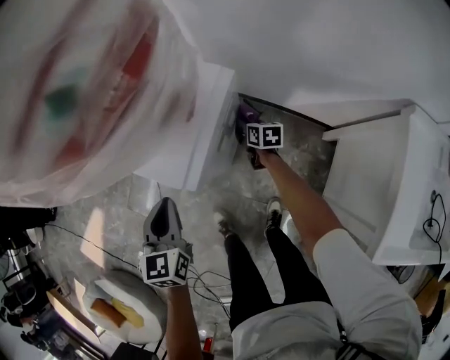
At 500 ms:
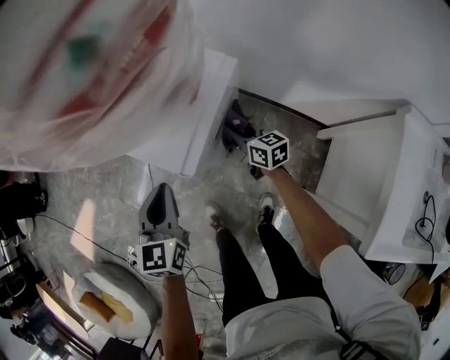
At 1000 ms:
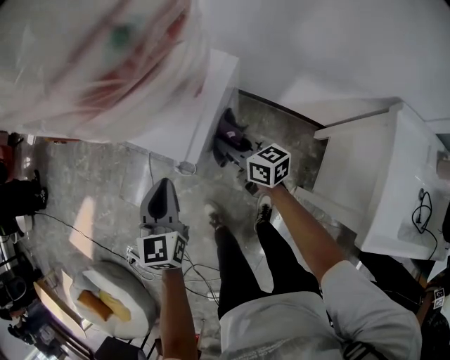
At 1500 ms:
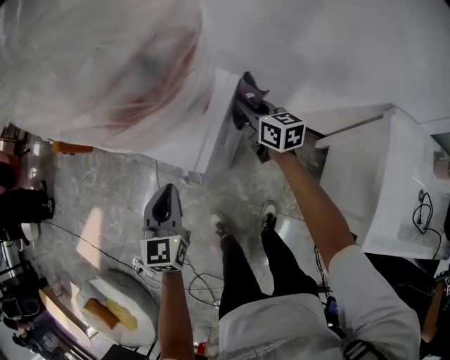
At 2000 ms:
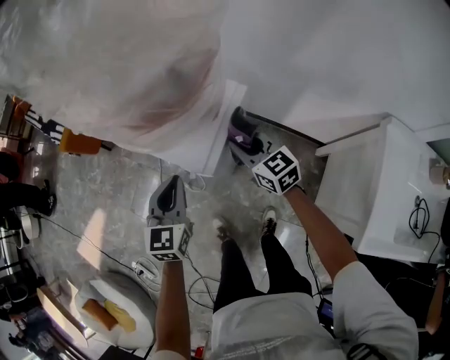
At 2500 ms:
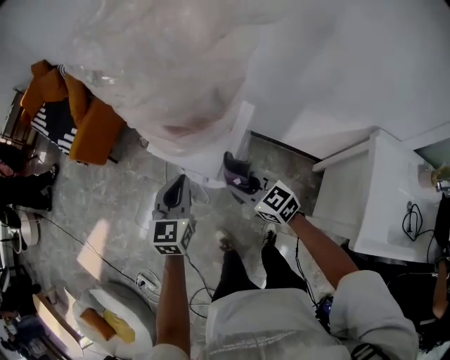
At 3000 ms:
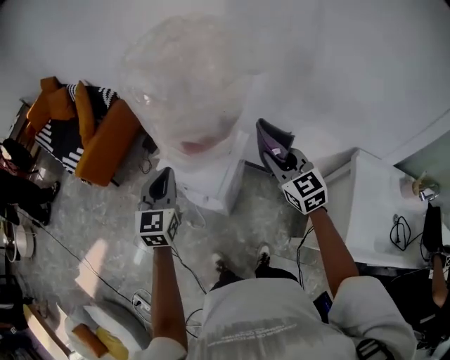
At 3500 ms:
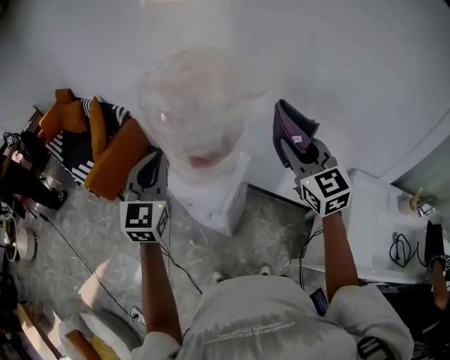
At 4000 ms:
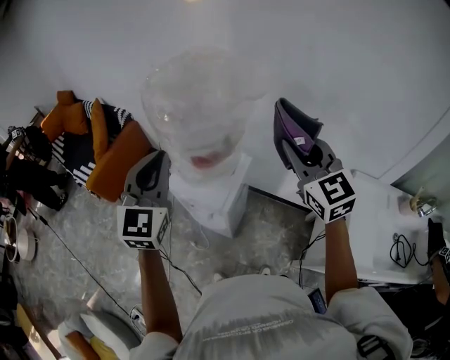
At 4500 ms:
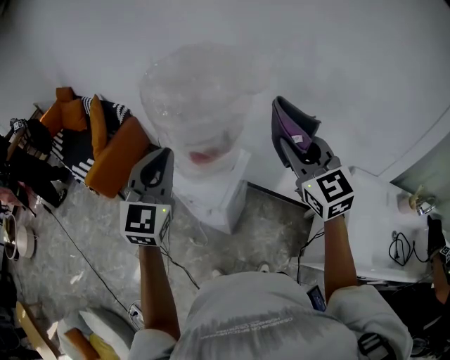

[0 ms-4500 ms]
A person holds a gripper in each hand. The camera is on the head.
0 ms to 2000 ms: The right gripper travels upward by some 30 cm, and changes its angle by about 40 degrees. The left gripper shifts some 10 cm upward.
2000 ms to 4500 ms: The grippers both shift upward by some 35 cm. The left gripper turns by some 30 degrees. Meanwhile the right gripper changes its angle by about 40 degrees.

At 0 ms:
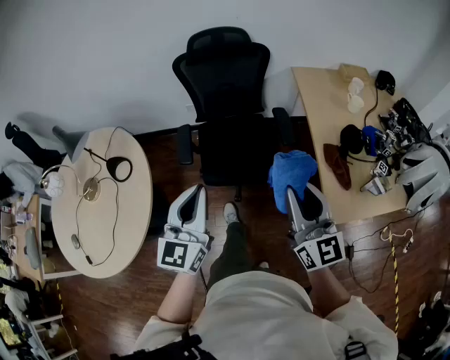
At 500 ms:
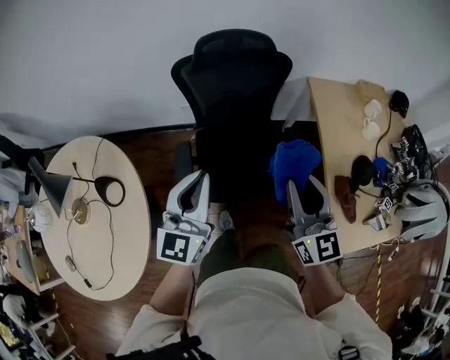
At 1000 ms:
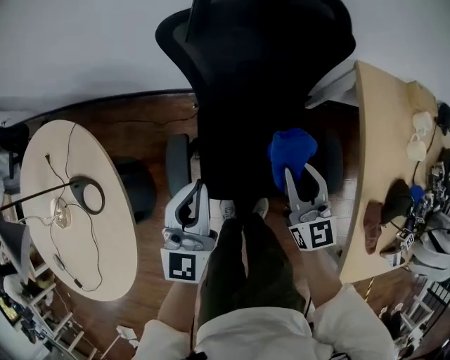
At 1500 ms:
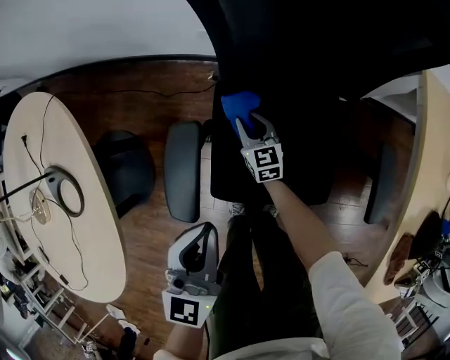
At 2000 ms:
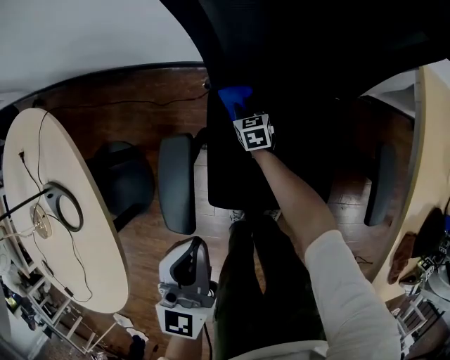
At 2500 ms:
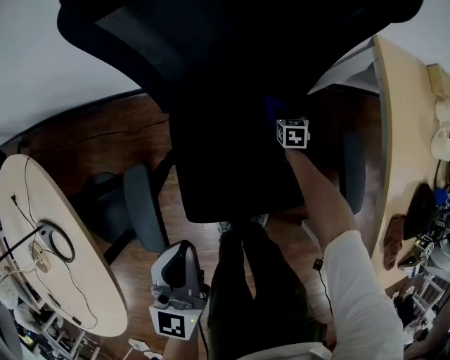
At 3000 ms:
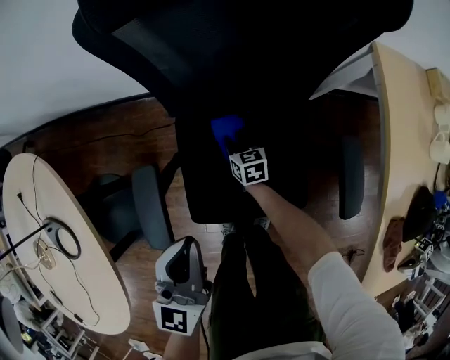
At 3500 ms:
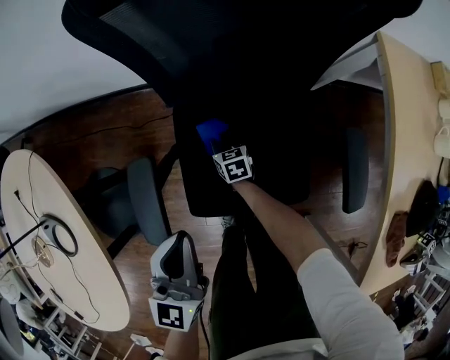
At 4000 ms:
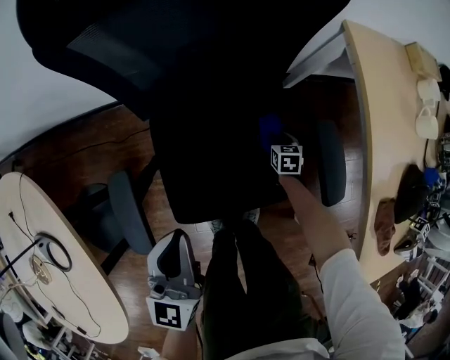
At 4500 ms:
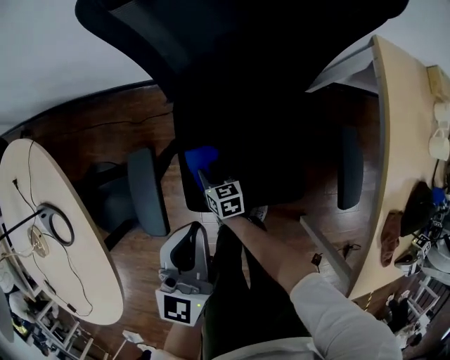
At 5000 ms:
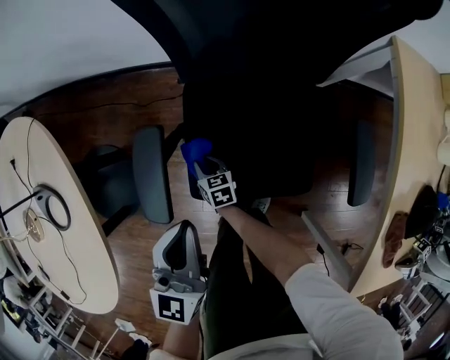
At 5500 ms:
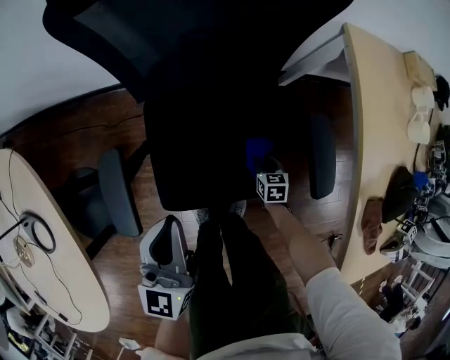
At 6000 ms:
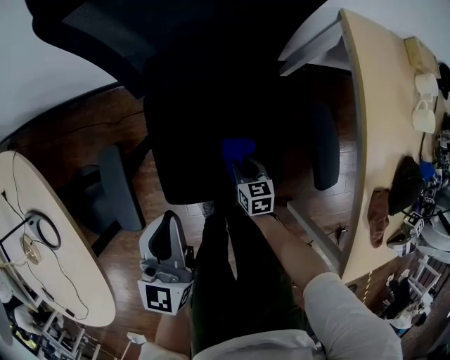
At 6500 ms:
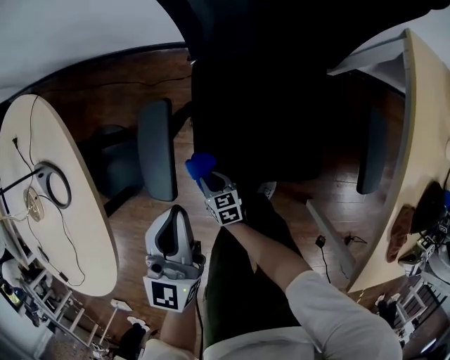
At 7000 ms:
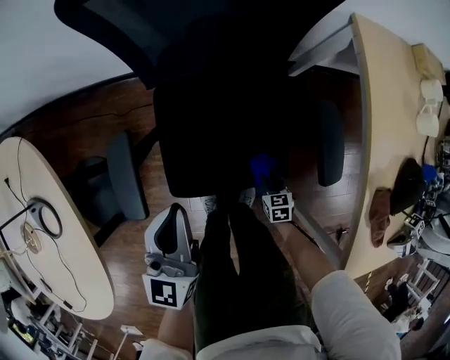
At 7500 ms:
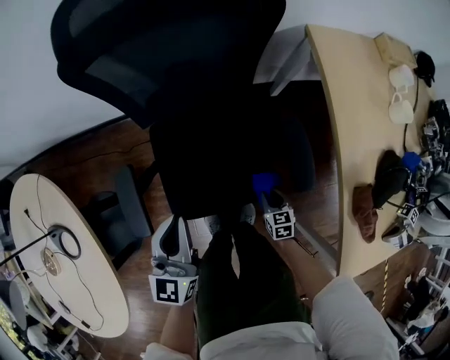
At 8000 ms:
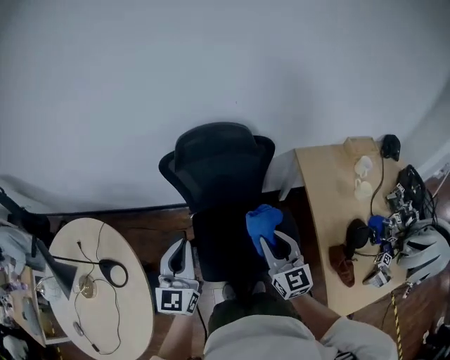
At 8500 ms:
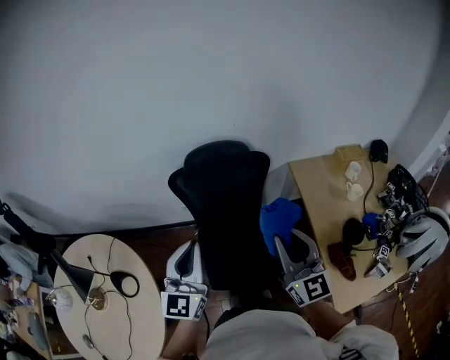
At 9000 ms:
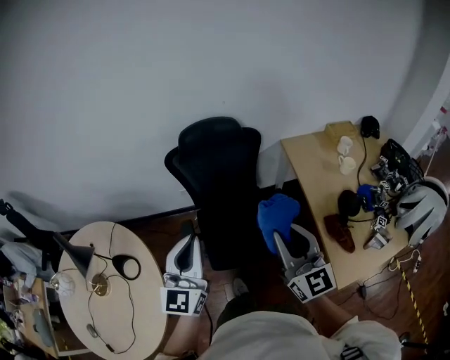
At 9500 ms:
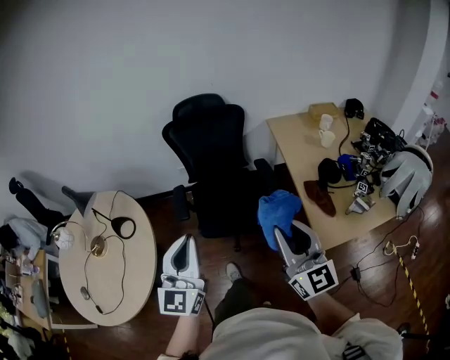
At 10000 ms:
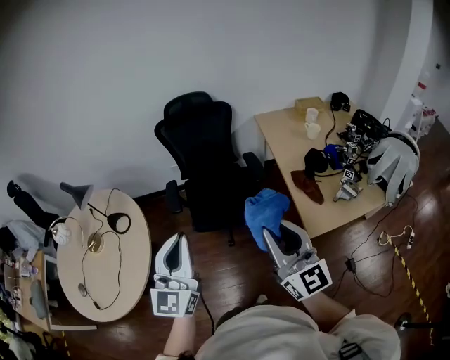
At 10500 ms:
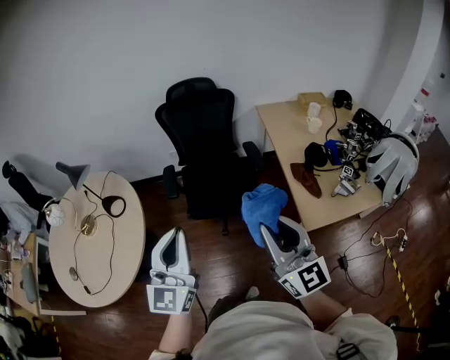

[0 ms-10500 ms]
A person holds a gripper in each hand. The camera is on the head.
0 ms to 2000 ms: The left gripper shifts some 60 cm downward and forward; the right gripper shifts some 1 m downward and forward, and points its fingers approximately 50 degrees further downward.
2000 ms to 4000 ms: The right gripper swings left and right, about 30 cm each way, with 2 reversals, and swivels some 30 degrees. Meanwhile the left gripper moves to the right, approximately 10 cm.
4000 ms to 6500 ms: The right gripper swings up and down, some 5 cm each way, with 3 reversals, and rotates about 30 degrees. The left gripper changes place by roughly 10 cm.
6500 ms to 8500 ms: The left gripper goes about 50 cm upward and backward, and swivels approximately 30 degrees. The right gripper travels upward by approximately 90 cm, and tips its fingers upward by about 60 degrees.
8500 ms to 10500 ms: The pair of grippers is taken backward, about 50 cm.

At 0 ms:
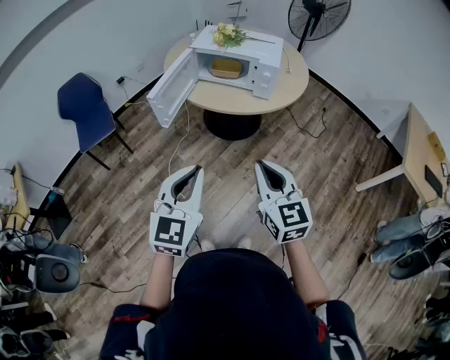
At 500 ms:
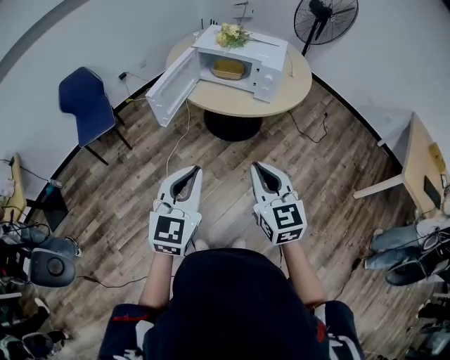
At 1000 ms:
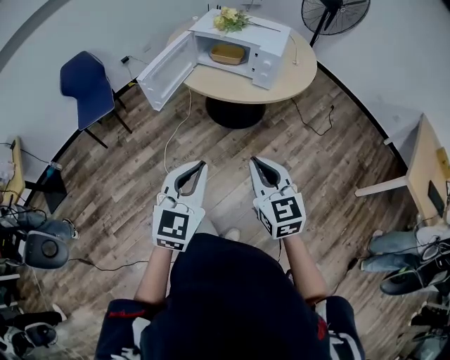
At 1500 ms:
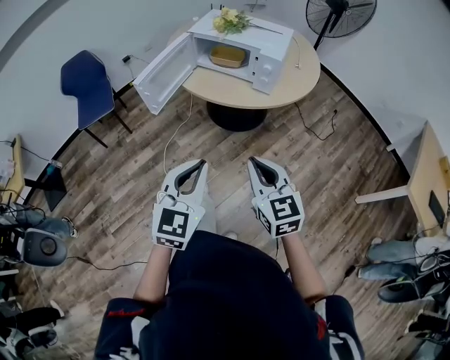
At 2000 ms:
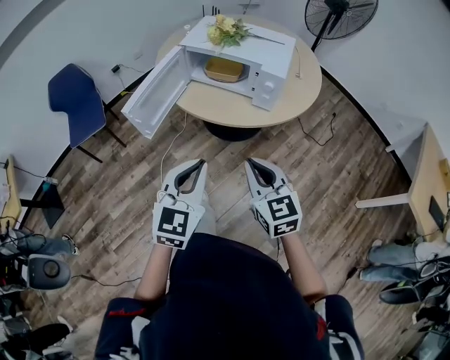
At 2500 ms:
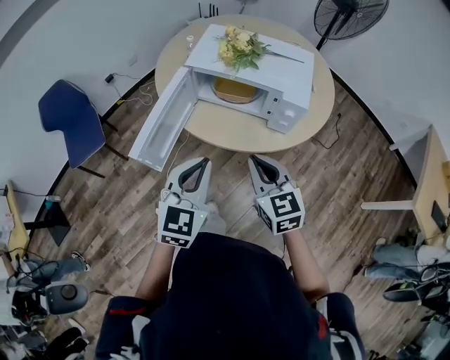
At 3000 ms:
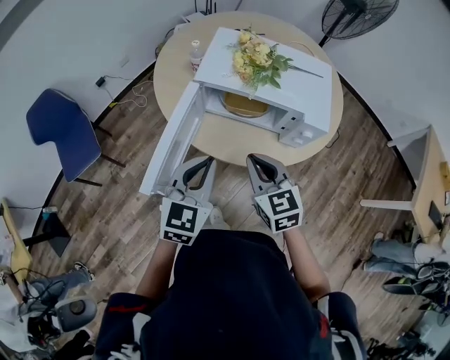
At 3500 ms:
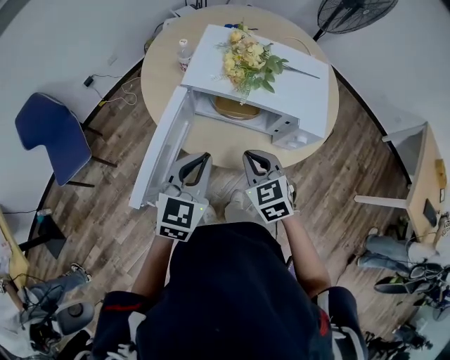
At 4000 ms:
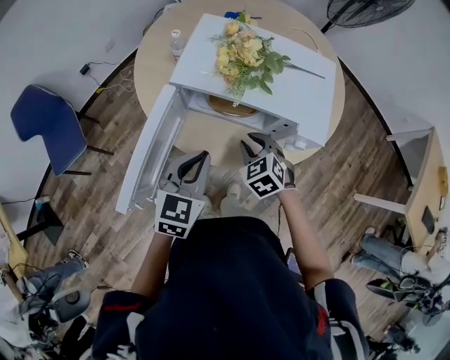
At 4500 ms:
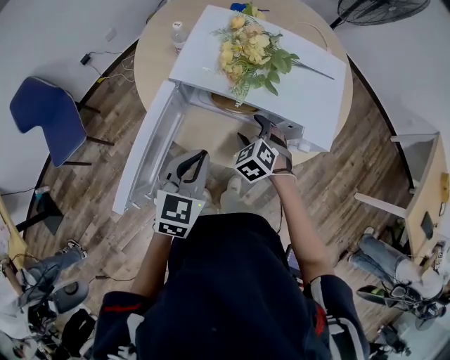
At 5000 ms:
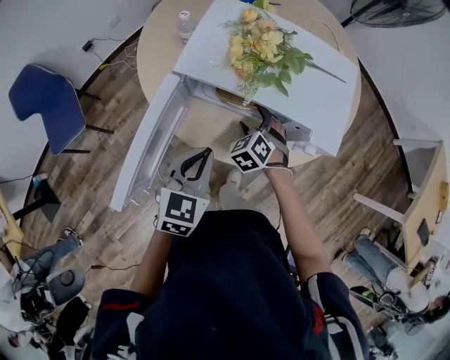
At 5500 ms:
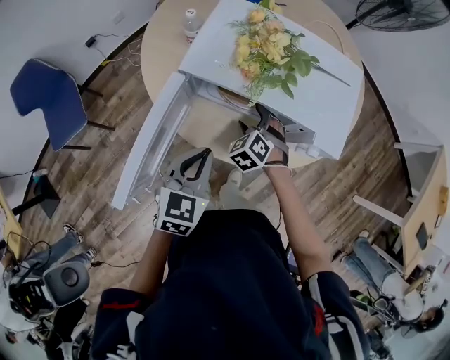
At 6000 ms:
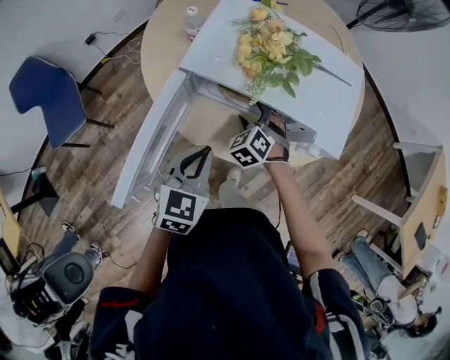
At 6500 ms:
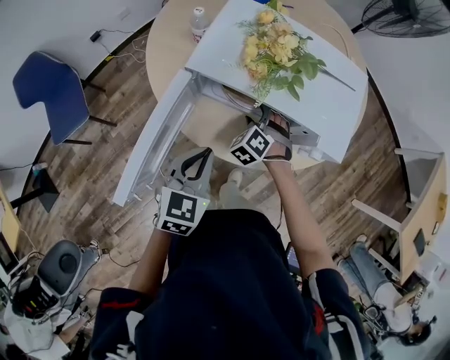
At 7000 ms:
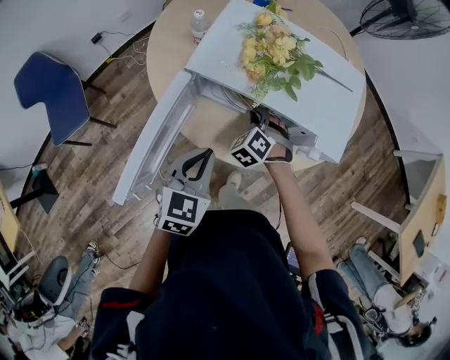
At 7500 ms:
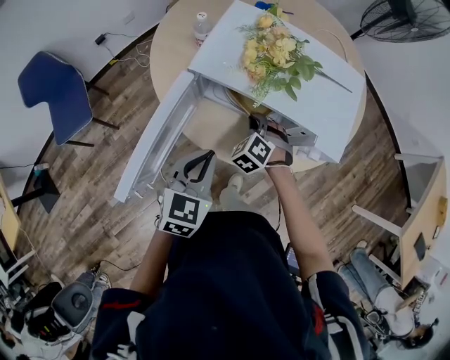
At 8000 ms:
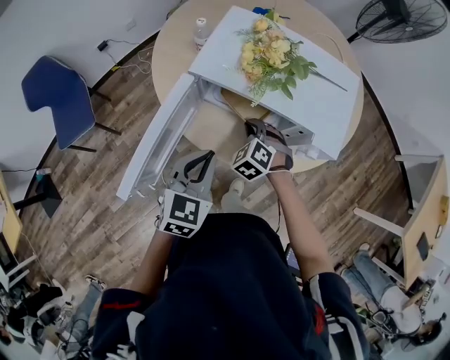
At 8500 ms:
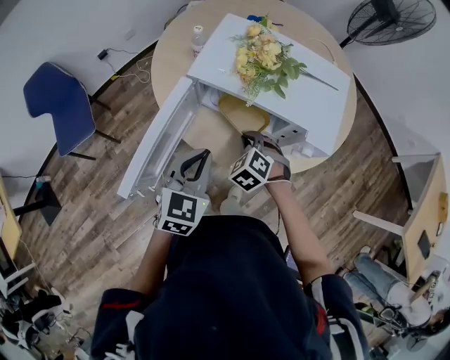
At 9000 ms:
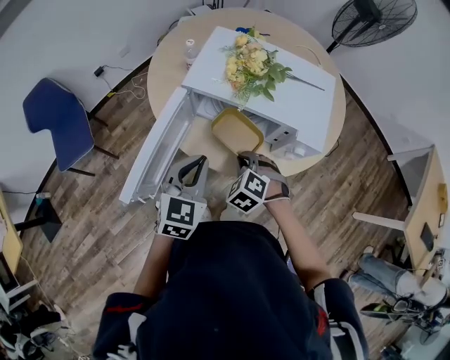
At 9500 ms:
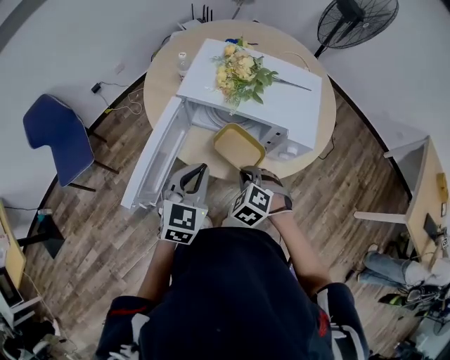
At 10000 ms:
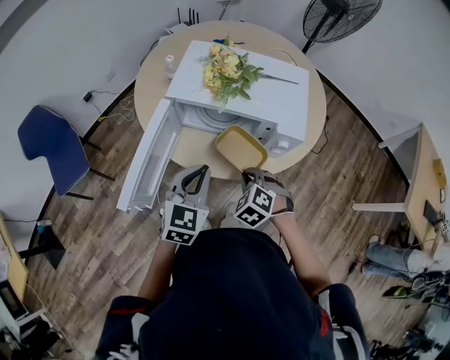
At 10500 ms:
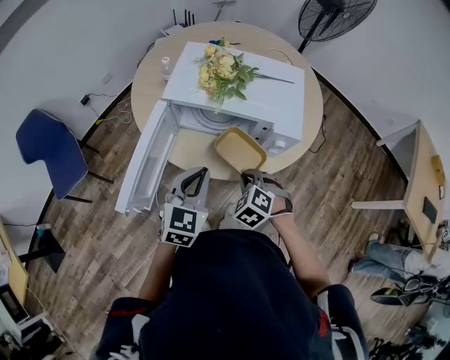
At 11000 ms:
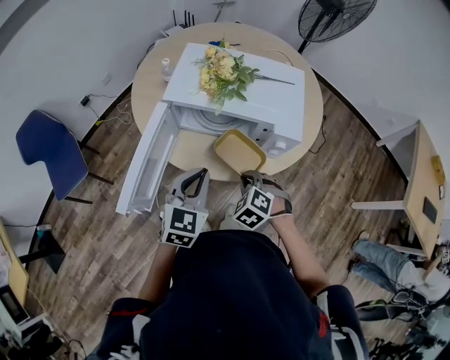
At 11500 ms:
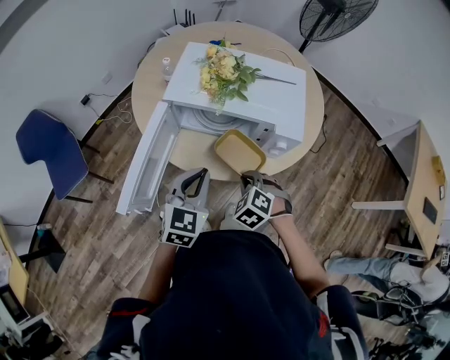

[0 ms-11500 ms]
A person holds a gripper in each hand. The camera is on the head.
0 ms to 2000 ms: The right gripper heads forward and downward, covering some 20 cm; the left gripper heads forward and to the right, covering approximately 20 cm.
2000 ms to 4000 ms: The right gripper moves forward and downward, some 40 cm, and tips its fingers downward by approximately 30 degrees, while the left gripper is displaced forward by about 35 cm.
4000 ms to 6000 ms: The right gripper shifts some 10 cm forward and downward, and opens.
6000 ms to 7500 ms: The right gripper closes up.
7500 ms to 9500 ms: The right gripper goes roughly 15 cm backward and upward. Meanwhile the left gripper shifts by about 5 cm.
9500 ms to 11500 ms: The grippers make only small movements.
